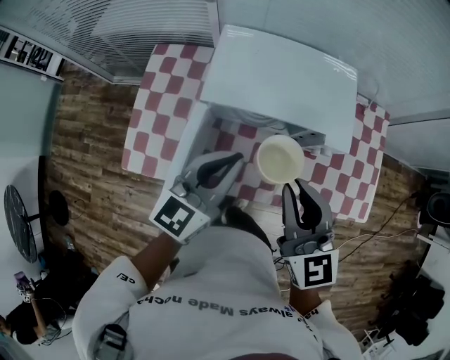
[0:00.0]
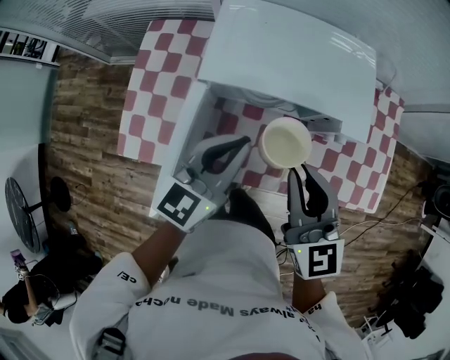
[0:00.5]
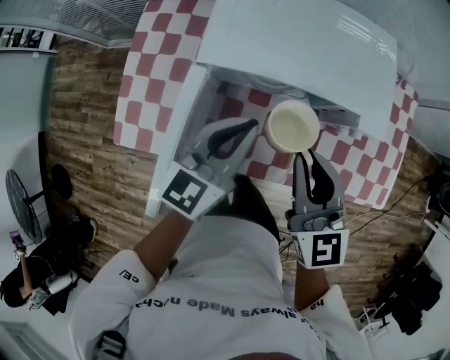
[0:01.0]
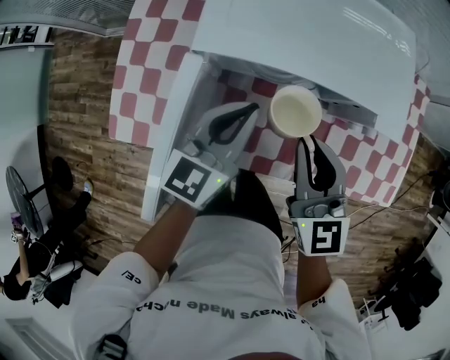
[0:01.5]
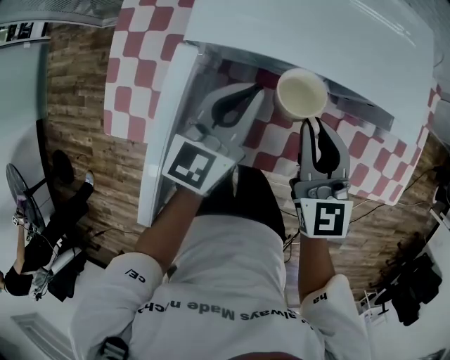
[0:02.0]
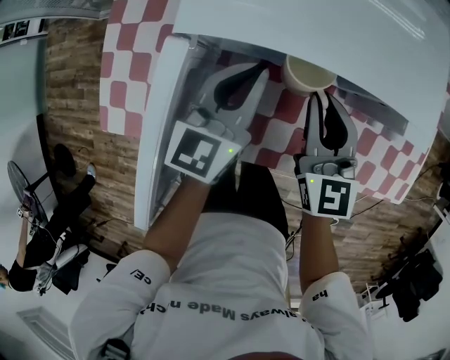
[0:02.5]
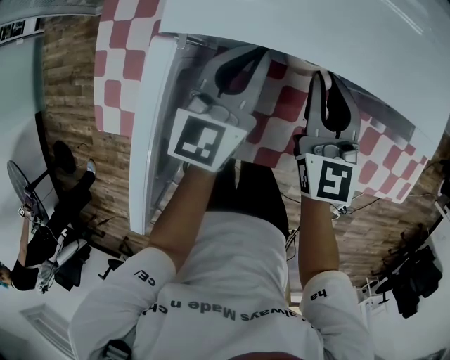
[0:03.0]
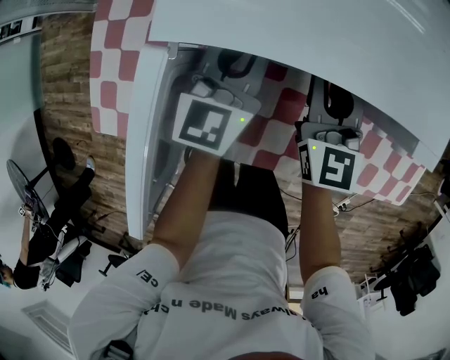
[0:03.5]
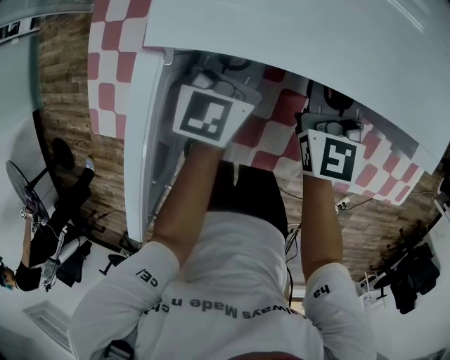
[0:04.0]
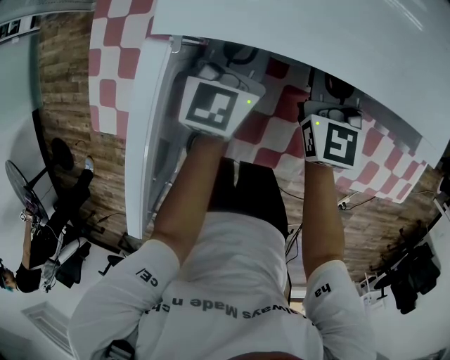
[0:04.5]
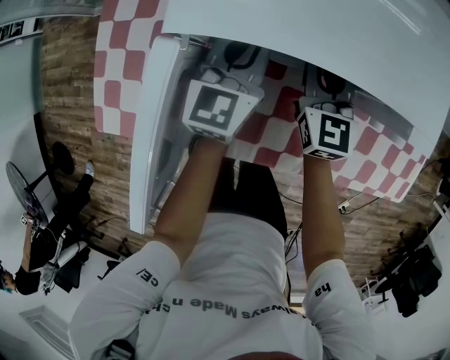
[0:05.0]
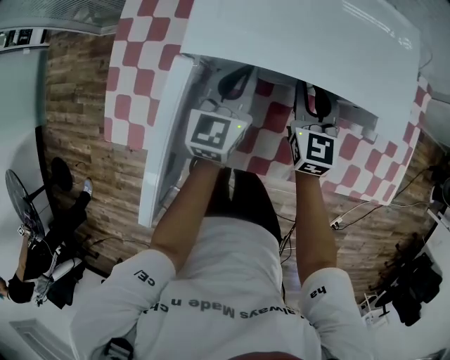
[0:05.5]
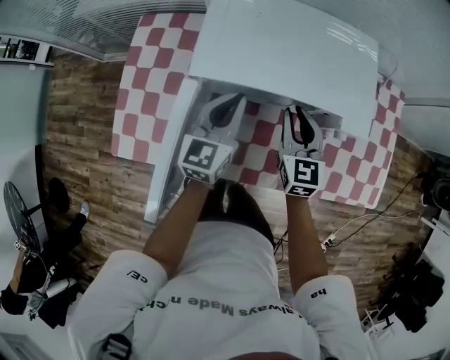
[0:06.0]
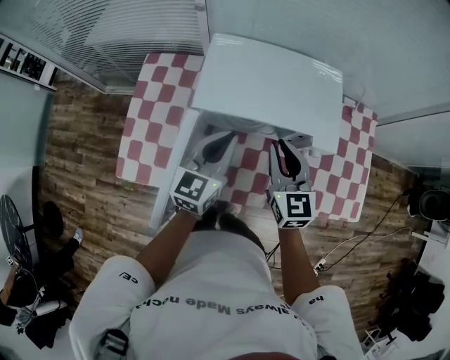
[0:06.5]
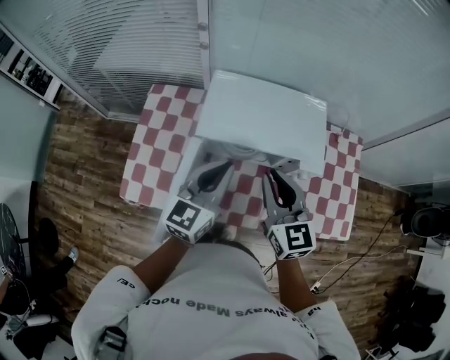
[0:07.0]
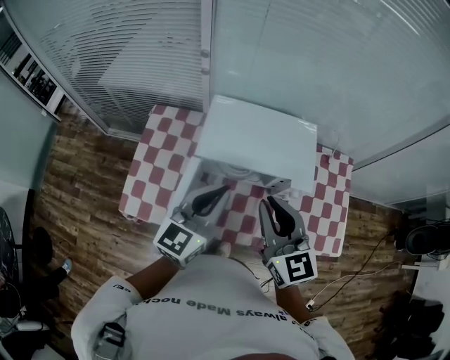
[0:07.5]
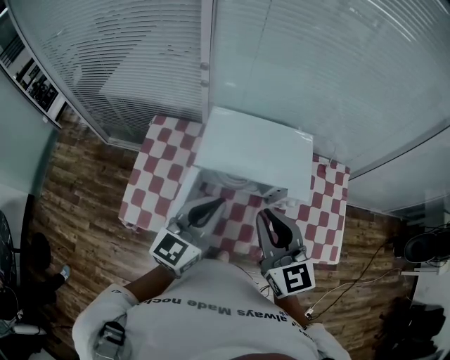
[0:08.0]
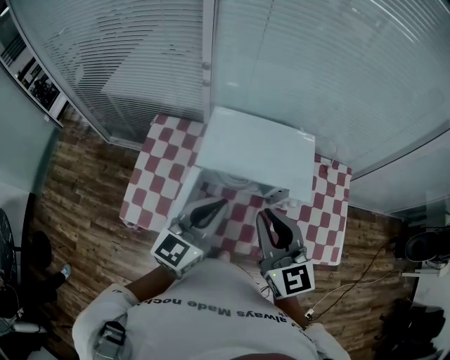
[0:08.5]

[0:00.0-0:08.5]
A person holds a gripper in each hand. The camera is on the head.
0:00.0 to 0:02.0: The left gripper shifts some 20 cm downward and forward. The right gripper travels downward by approximately 20 cm.
0:02.0 to 0:04.0: The grippers both shift forward and downward by roughly 15 cm.
0:04.0 to 0:06.5: Both grippers move upward and backward, roughly 25 cm.
0:06.5 to 0:08.5: The grippers both shift upward and backward by roughly 20 cm.

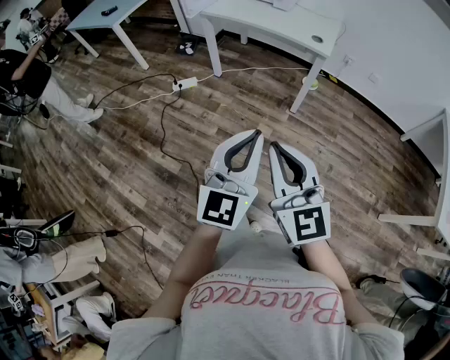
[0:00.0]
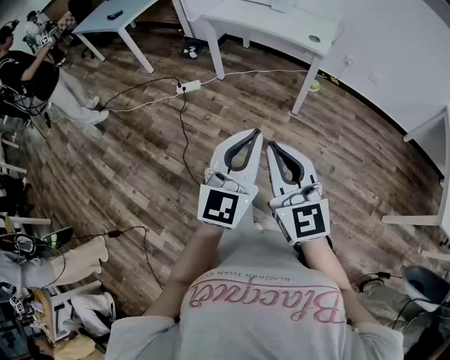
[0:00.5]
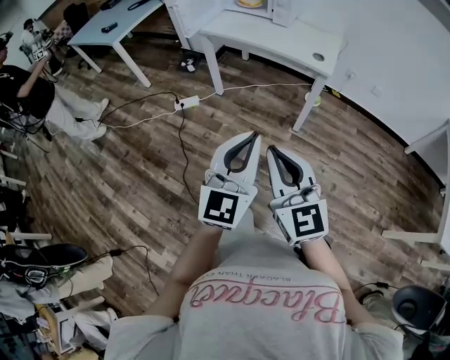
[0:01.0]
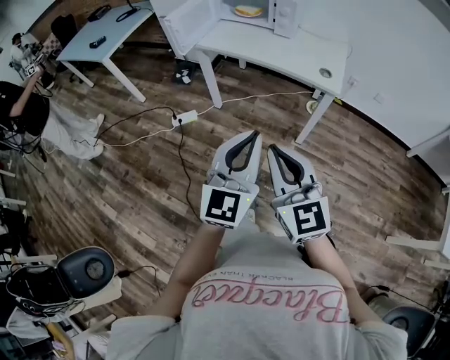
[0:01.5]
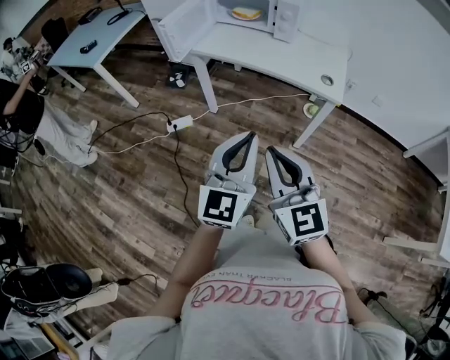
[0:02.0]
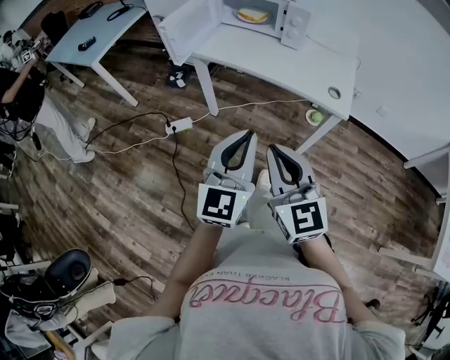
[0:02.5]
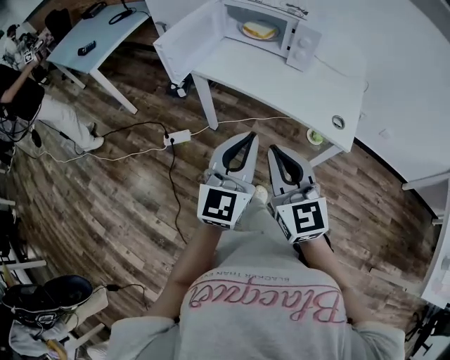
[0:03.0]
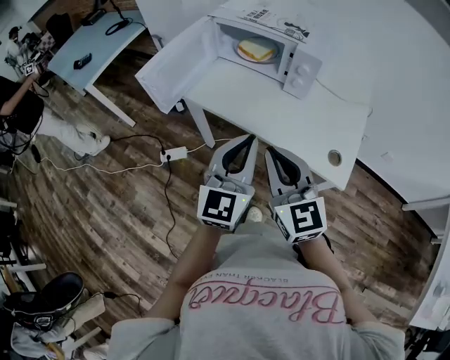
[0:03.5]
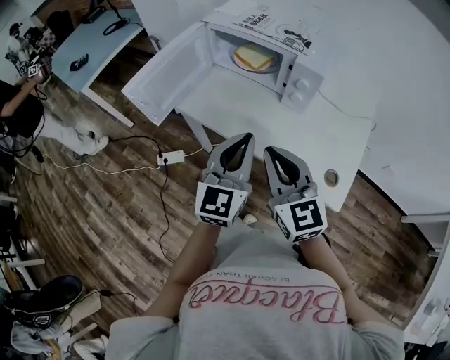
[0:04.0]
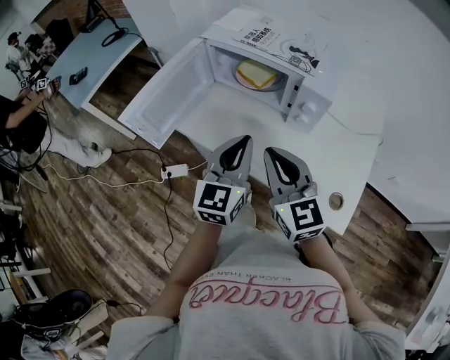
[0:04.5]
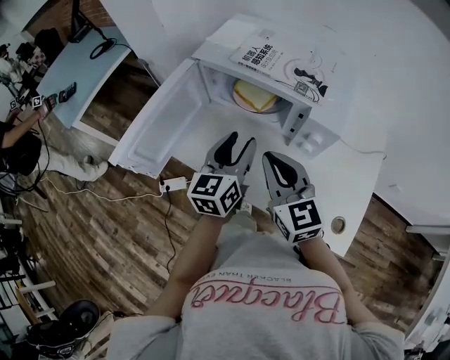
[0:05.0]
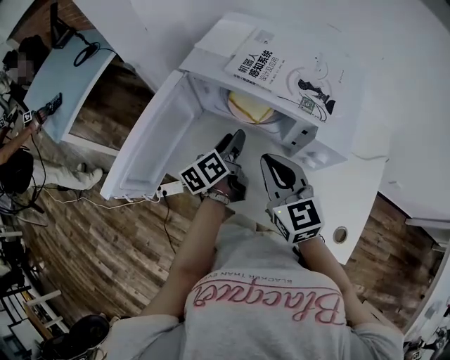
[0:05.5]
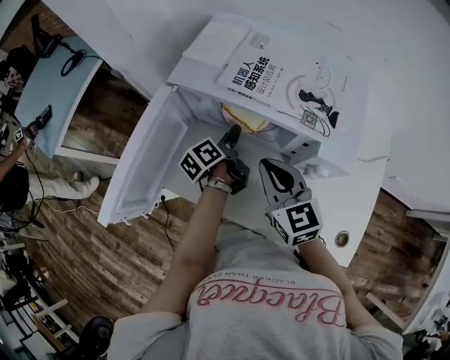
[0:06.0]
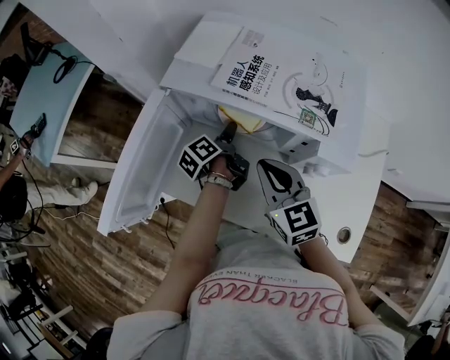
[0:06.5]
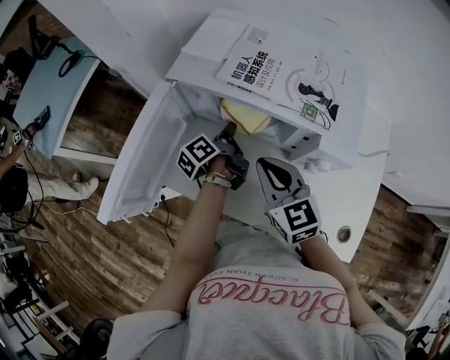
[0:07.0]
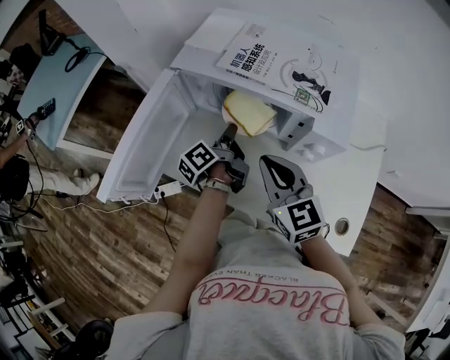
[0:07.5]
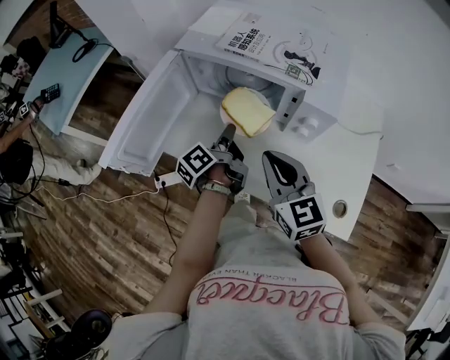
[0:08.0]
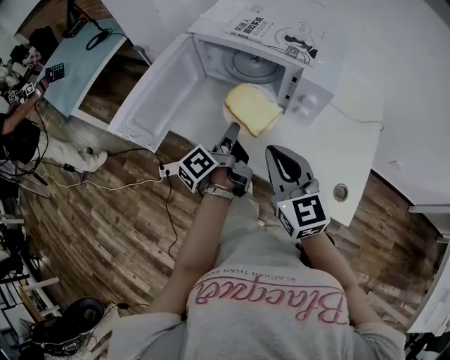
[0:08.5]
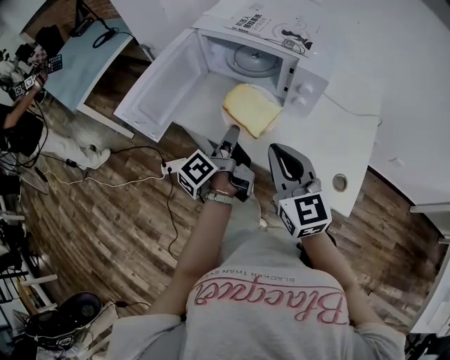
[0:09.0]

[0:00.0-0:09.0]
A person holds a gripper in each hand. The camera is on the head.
0:00.0 to 0:02.0: Both grippers move forward, approximately 30 cm.
0:02.0 to 0:04.5: The two grippers travel together, forward, about 50 cm.
0:04.5 to 0:07.0: The left gripper goes roughly 35 cm forward and downward, rotates around the line of its fingers by some 70 degrees, counterclockwise from behind, and opens, then closes once more, while the right gripper travels forward and downward by roughly 20 cm.
0:07.0 to 0:09.0: The two grippers go some 25 cm backward.

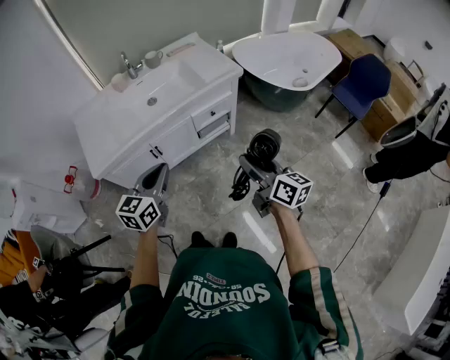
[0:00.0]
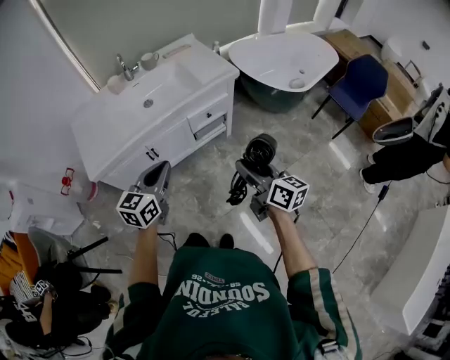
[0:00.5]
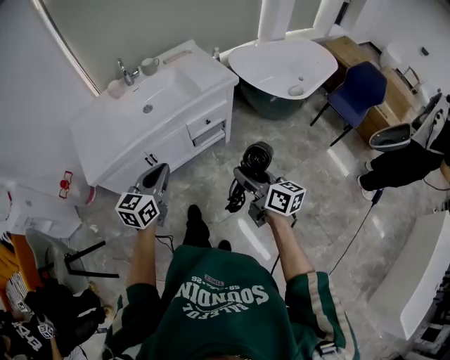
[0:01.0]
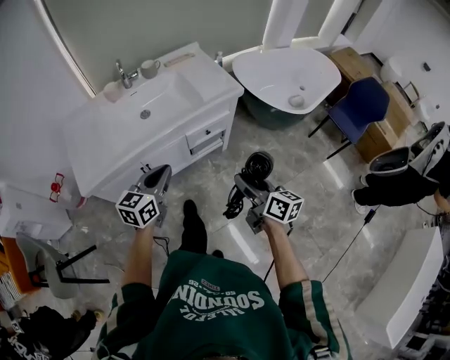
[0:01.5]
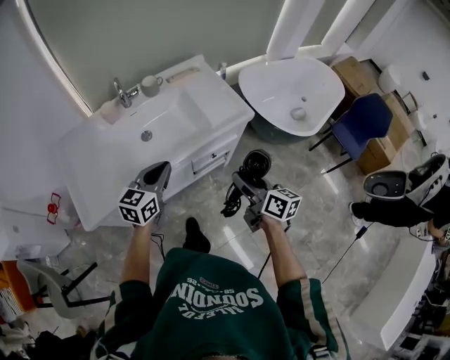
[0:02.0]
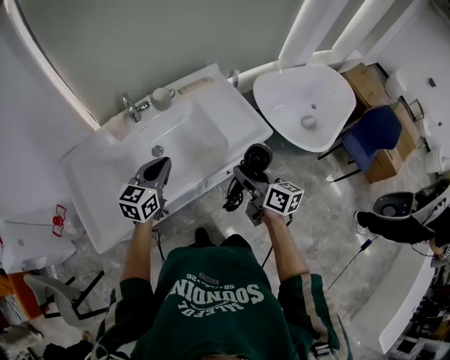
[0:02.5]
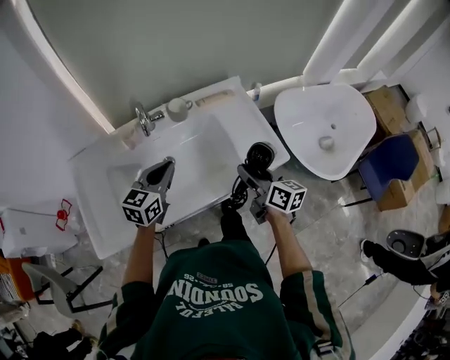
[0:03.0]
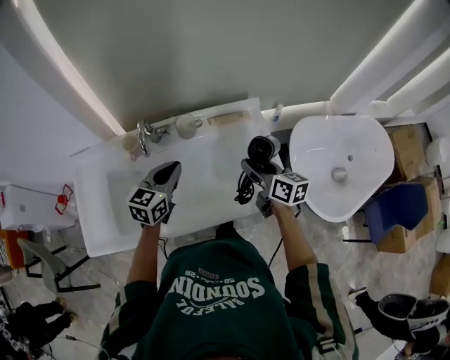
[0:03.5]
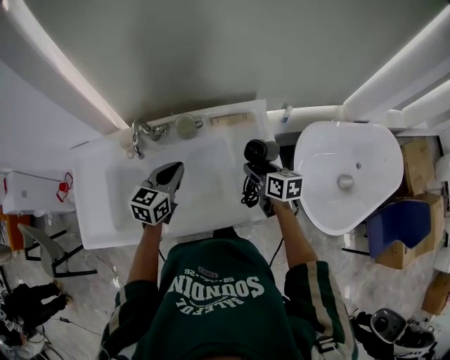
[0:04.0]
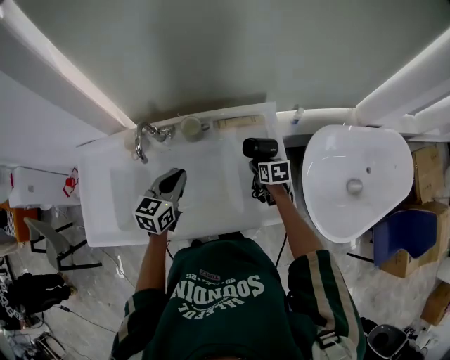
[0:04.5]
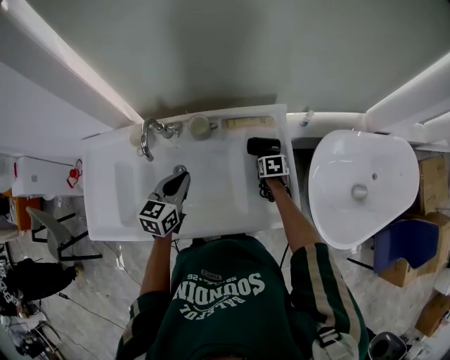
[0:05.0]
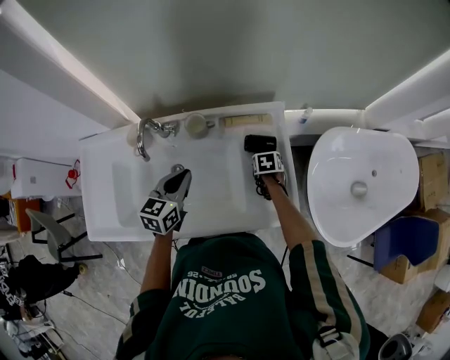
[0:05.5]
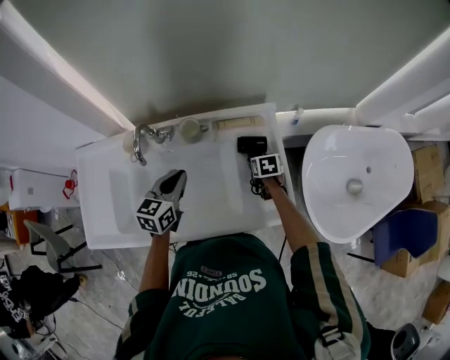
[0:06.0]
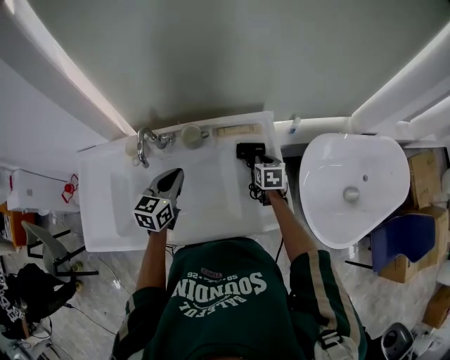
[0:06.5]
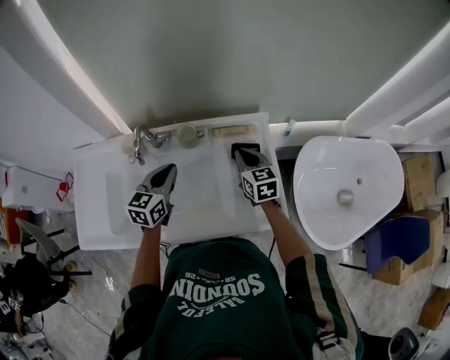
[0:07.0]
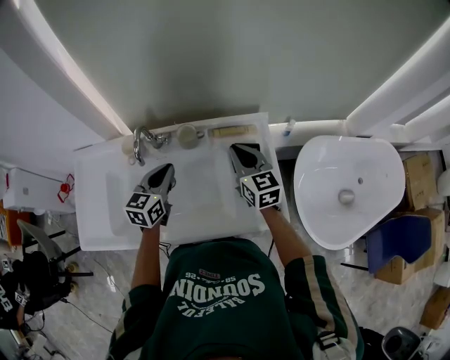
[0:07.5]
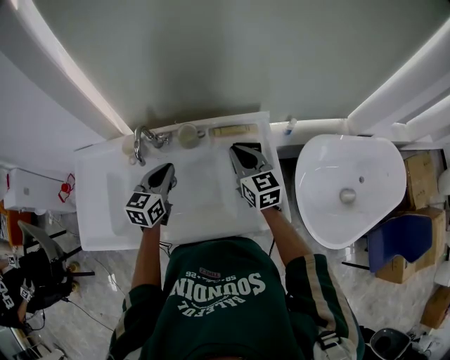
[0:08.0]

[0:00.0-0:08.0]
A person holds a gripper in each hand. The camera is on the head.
0:00.0 to 0:02.0: Both grippers travel together forward, roughly 25 cm.
0:02.0 to 0:04.0: The two grippers go about 40 cm forward. The right gripper swivels roughly 40 degrees. The left gripper rotates about 20 degrees.
0:04.0 to 0:06.0: The right gripper goes approximately 15 cm downward and forward, and changes its angle by about 30 degrees.
0:06.0 to 0:08.0: The right gripper moves upward and to the left, about 25 cm, points its fingers some 50 degrees further upward, and closes.

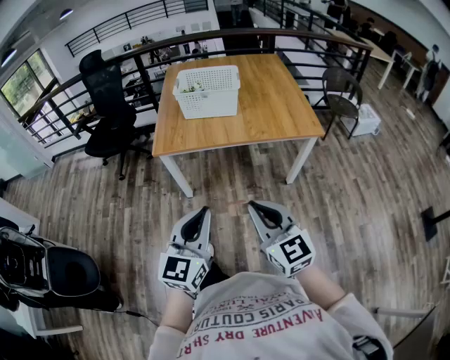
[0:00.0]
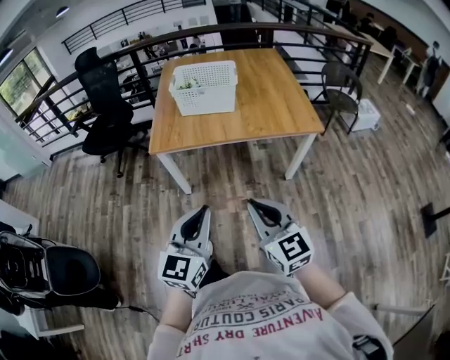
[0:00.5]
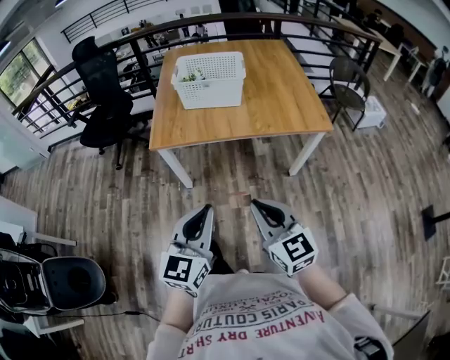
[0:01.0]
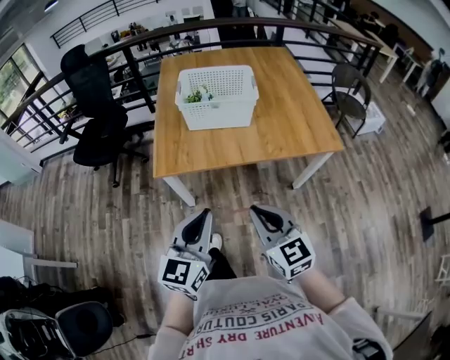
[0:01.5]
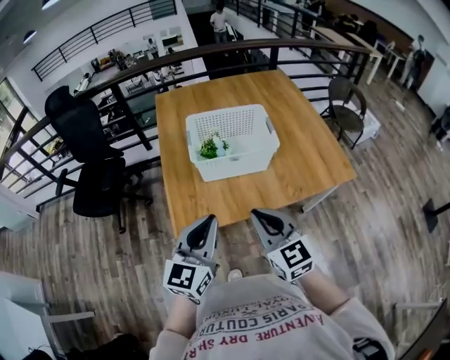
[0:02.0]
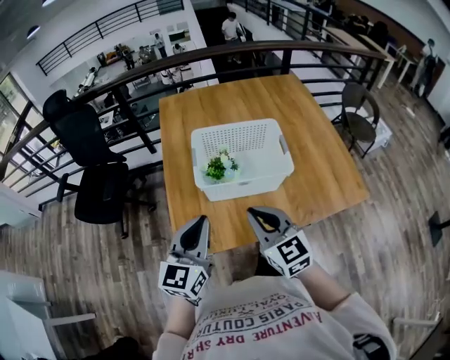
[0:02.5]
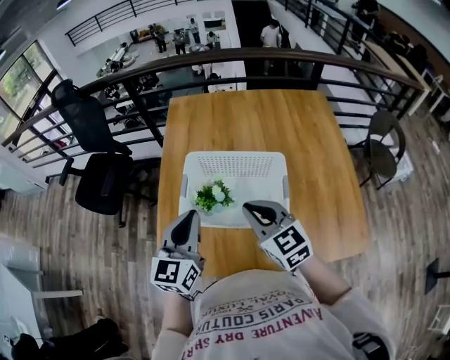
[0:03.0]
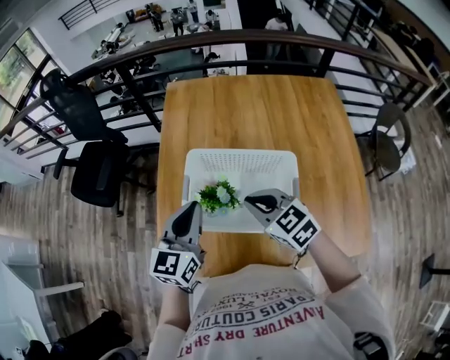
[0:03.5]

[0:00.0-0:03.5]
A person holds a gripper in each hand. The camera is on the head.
0:00.0 to 0:02.0: Both grippers are carried forward, roughly 40 cm.
0:02.0 to 0:03.5: The left gripper changes place by approximately 30 cm, while the right gripper moves about 35 cm, and rotates some 40 degrees.
